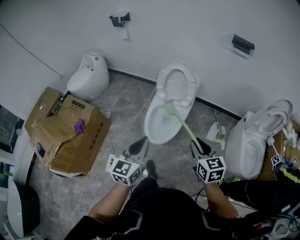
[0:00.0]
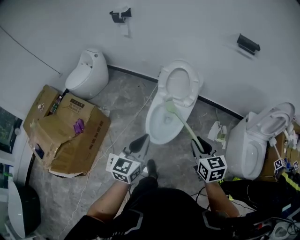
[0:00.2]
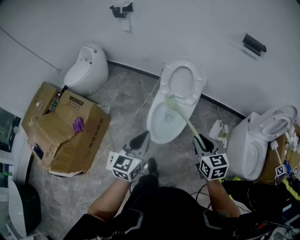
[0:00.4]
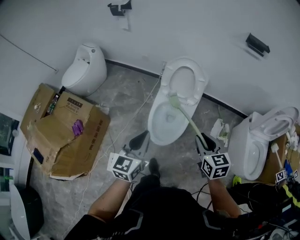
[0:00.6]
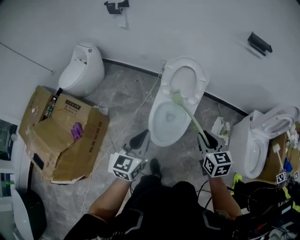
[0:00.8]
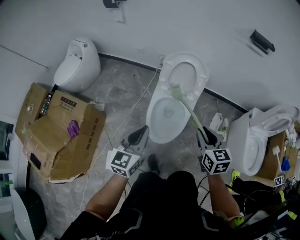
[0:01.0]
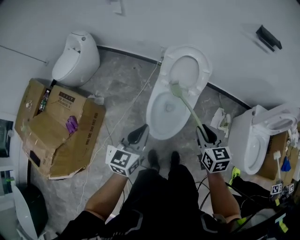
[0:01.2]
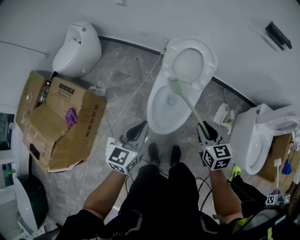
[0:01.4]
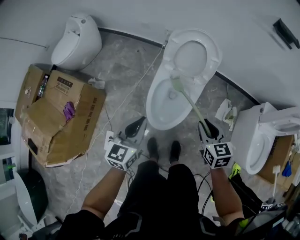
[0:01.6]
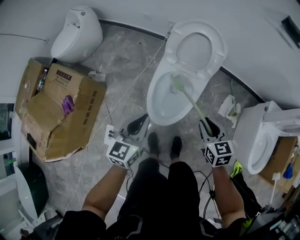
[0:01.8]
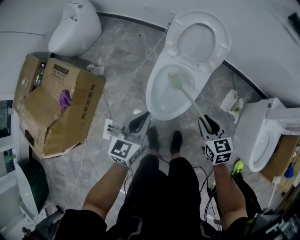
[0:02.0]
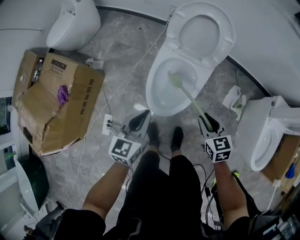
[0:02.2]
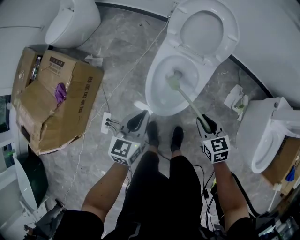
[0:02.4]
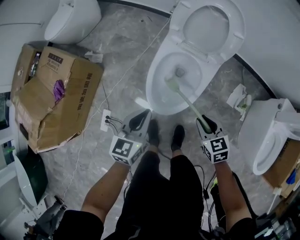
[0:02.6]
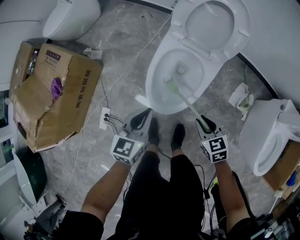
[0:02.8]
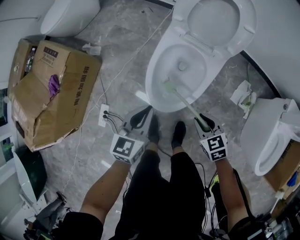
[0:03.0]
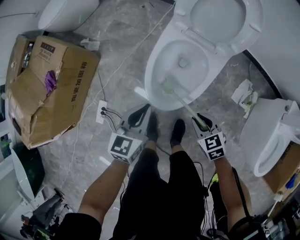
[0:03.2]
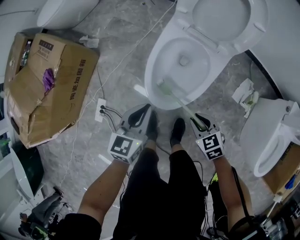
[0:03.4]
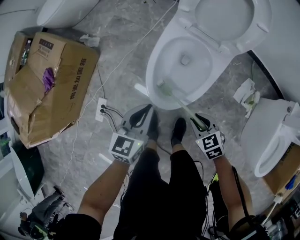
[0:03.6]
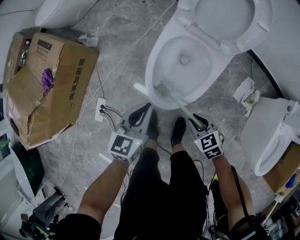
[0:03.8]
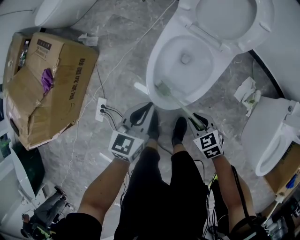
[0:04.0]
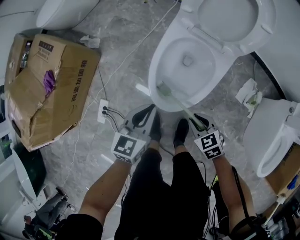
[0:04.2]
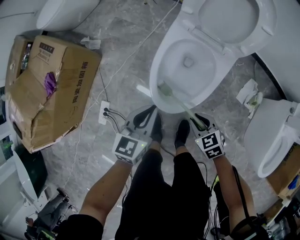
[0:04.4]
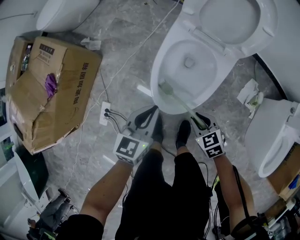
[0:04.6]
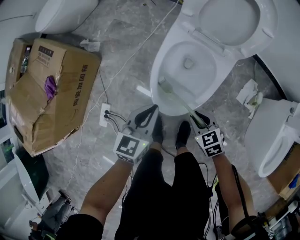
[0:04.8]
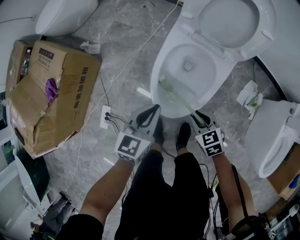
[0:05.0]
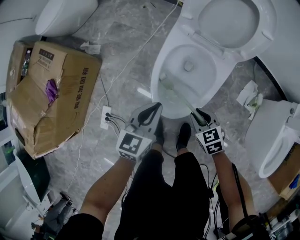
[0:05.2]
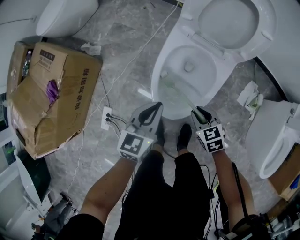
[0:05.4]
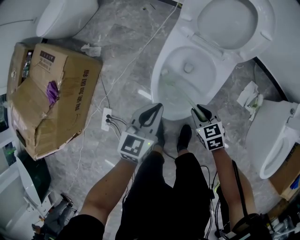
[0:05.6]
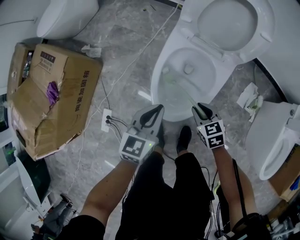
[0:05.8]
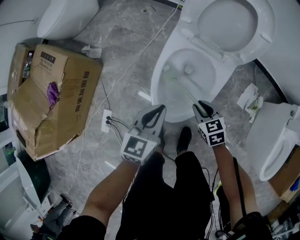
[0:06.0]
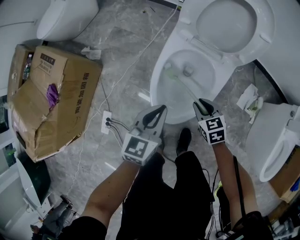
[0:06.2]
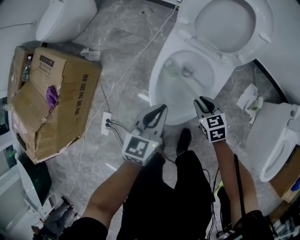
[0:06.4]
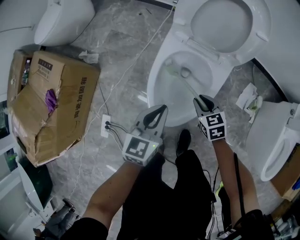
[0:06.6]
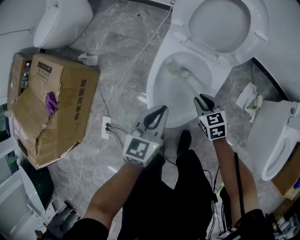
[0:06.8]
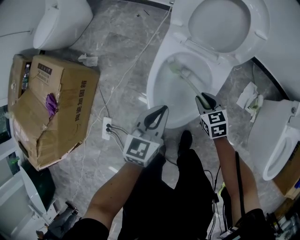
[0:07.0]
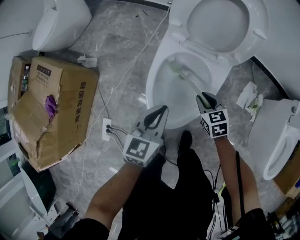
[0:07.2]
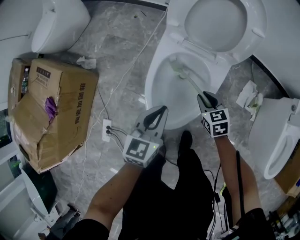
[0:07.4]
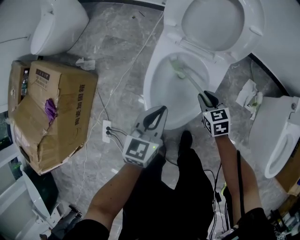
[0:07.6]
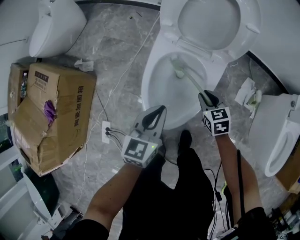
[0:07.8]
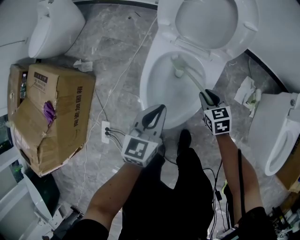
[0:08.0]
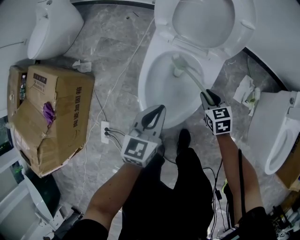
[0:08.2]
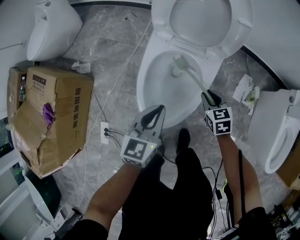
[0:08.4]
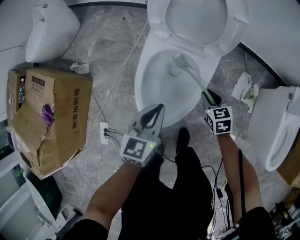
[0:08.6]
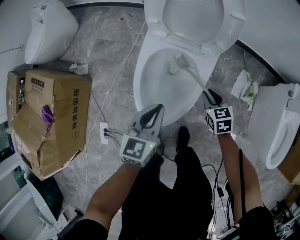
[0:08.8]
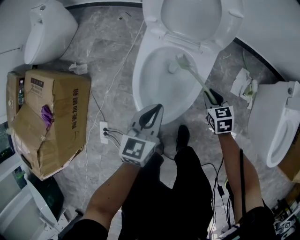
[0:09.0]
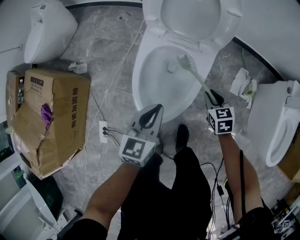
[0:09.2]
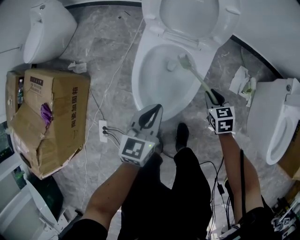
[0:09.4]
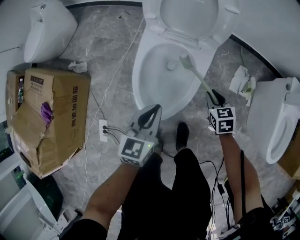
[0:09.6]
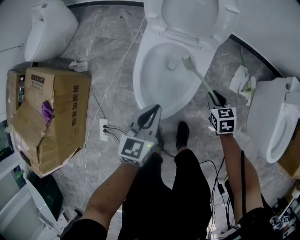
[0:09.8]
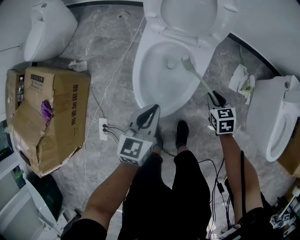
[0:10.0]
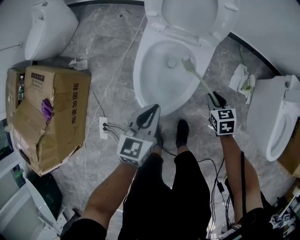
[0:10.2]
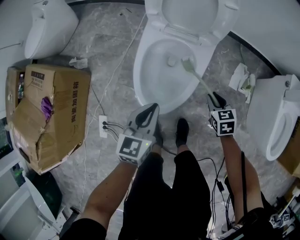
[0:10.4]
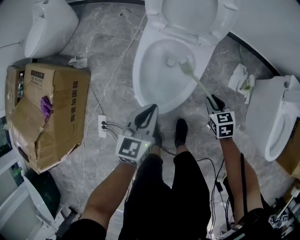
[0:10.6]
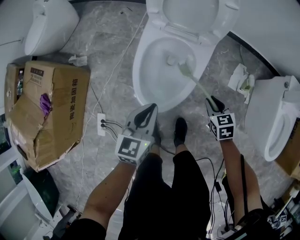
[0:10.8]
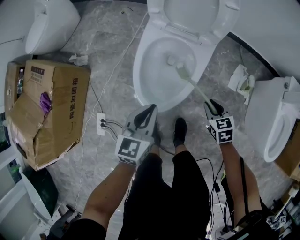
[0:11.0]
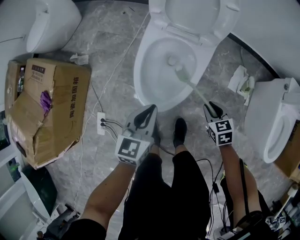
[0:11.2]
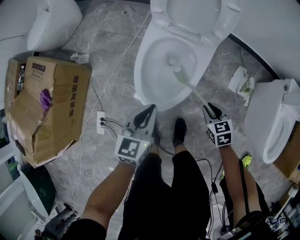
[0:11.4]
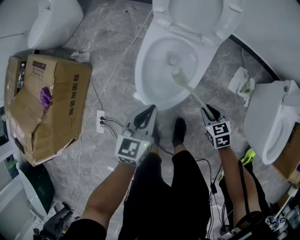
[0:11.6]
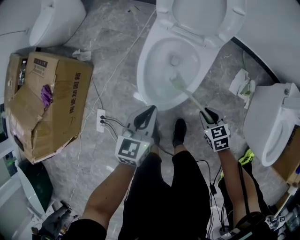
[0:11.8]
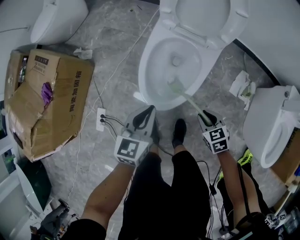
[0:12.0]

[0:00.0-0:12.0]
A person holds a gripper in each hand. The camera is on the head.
0:00.0 to 0:01.6: The two grippers go approximately 20 cm forward and downward.
0:01.6 to 0:03.0: Both grippers move downward, approximately 20 cm. The right gripper changes its angle by roughly 30 degrees.
0:03.0 to 0:04.4: The right gripper is displaced downward by some 5 cm.
0:04.4 to 0:06.0: The right gripper moves forward, some 10 cm, while the left gripper moves some 5 cm.
0:06.0 to 0:07.6: The right gripper travels forward and to the right by about 10 cm.
0:07.6 to 0:09.0: The right gripper shifts approximately 10 cm to the right.
0:09.0 to 0:10.4: The grippers both shift backward by about 5 cm.
0:10.4 to 0:12.0: The right gripper shifts roughly 10 cm backward and to the left.

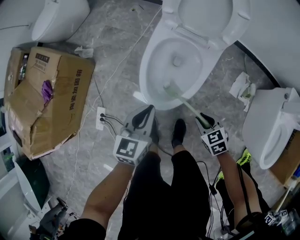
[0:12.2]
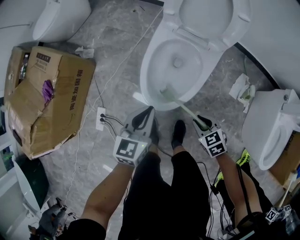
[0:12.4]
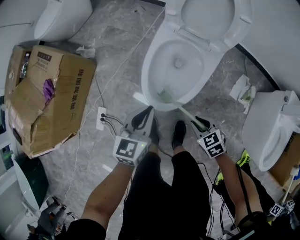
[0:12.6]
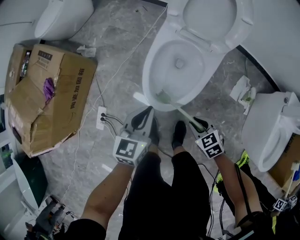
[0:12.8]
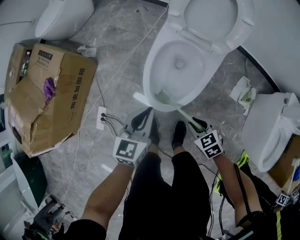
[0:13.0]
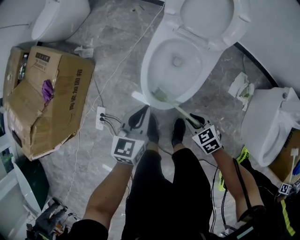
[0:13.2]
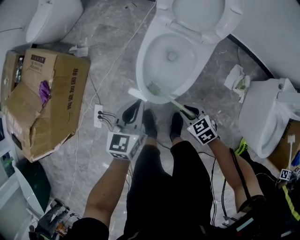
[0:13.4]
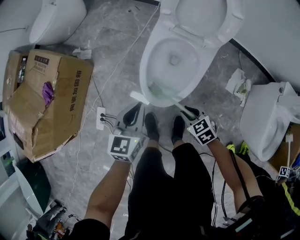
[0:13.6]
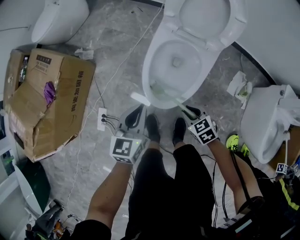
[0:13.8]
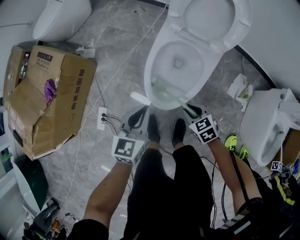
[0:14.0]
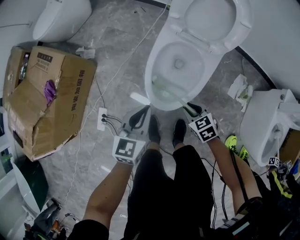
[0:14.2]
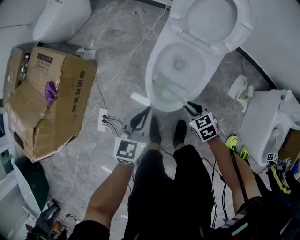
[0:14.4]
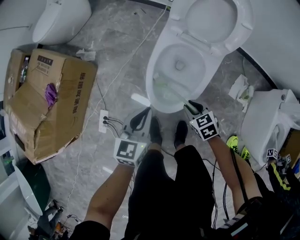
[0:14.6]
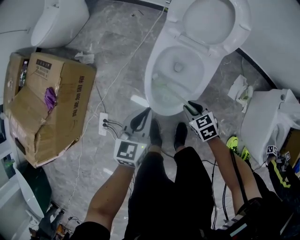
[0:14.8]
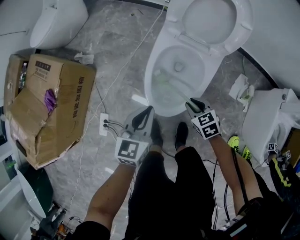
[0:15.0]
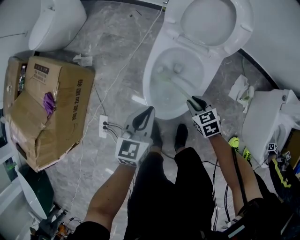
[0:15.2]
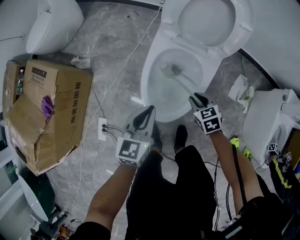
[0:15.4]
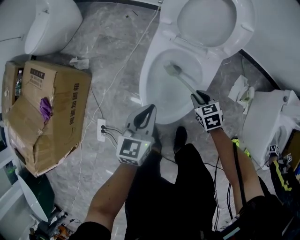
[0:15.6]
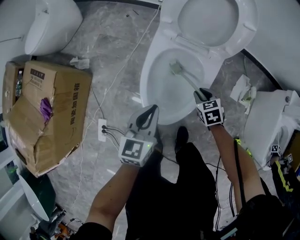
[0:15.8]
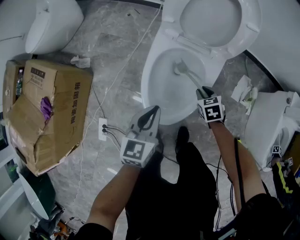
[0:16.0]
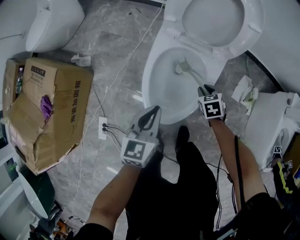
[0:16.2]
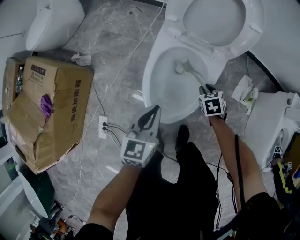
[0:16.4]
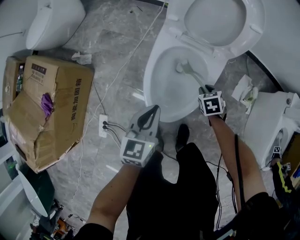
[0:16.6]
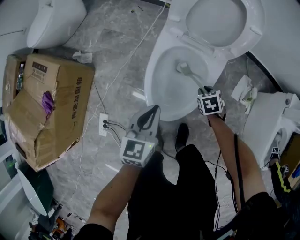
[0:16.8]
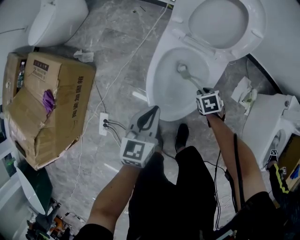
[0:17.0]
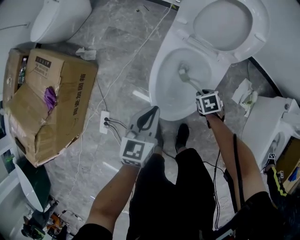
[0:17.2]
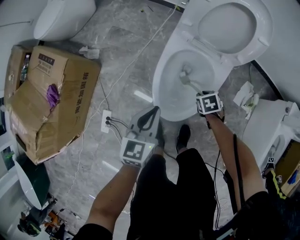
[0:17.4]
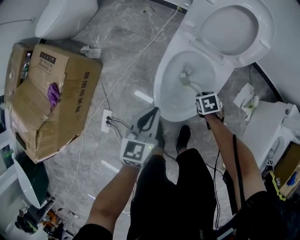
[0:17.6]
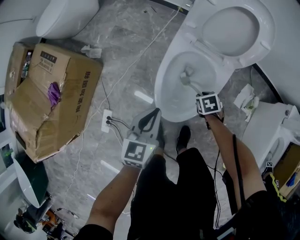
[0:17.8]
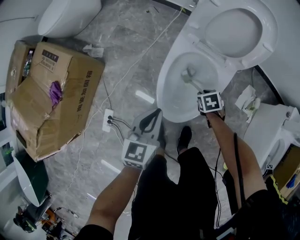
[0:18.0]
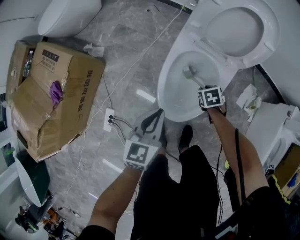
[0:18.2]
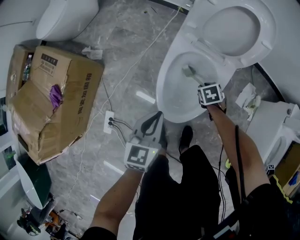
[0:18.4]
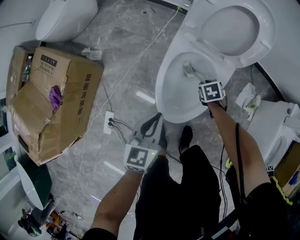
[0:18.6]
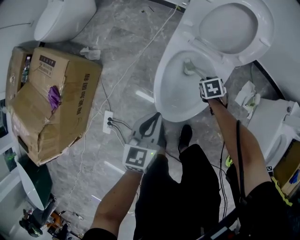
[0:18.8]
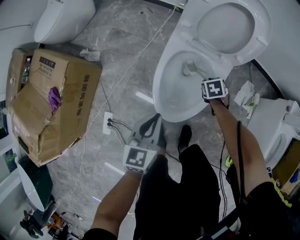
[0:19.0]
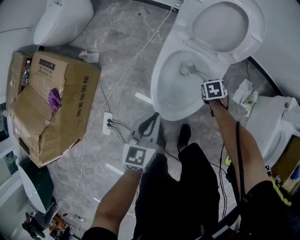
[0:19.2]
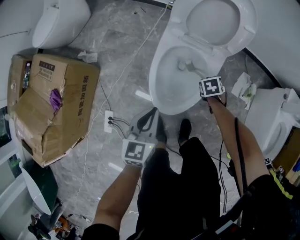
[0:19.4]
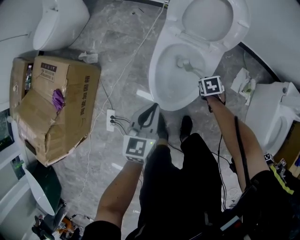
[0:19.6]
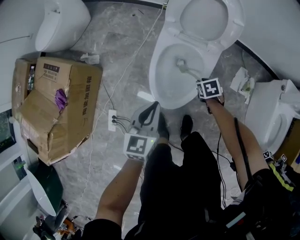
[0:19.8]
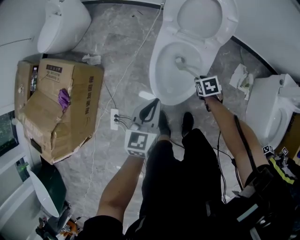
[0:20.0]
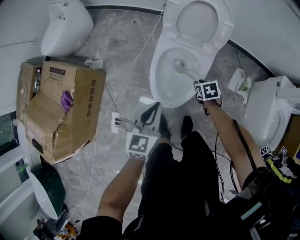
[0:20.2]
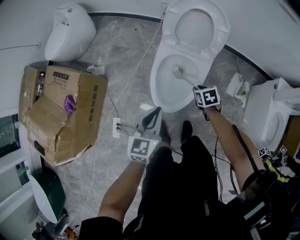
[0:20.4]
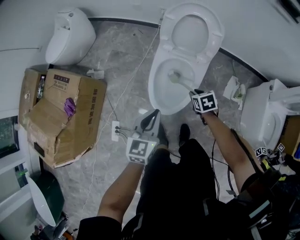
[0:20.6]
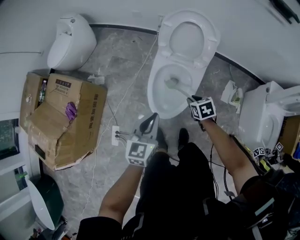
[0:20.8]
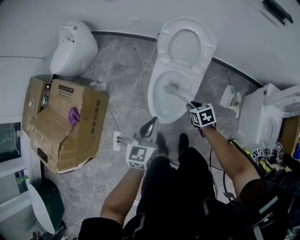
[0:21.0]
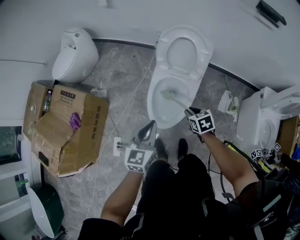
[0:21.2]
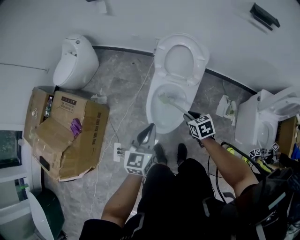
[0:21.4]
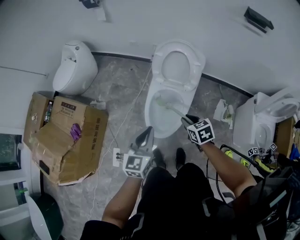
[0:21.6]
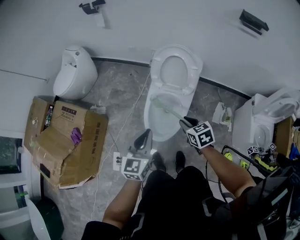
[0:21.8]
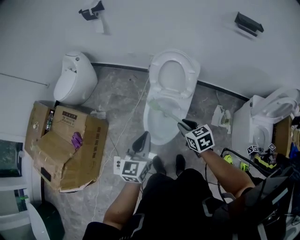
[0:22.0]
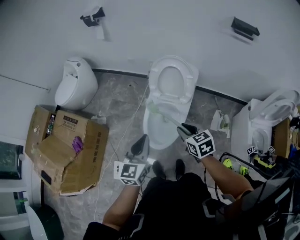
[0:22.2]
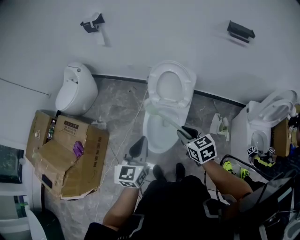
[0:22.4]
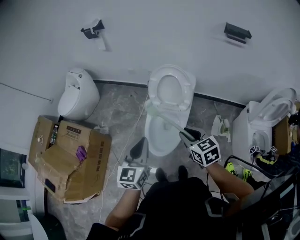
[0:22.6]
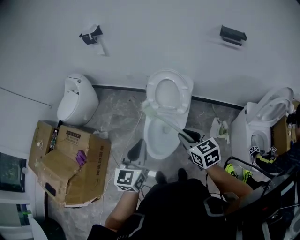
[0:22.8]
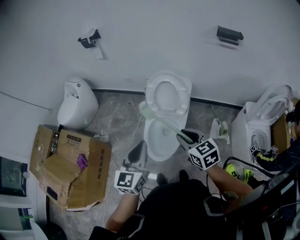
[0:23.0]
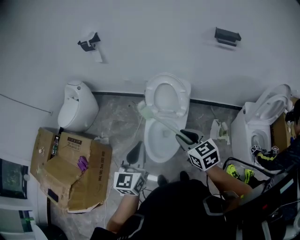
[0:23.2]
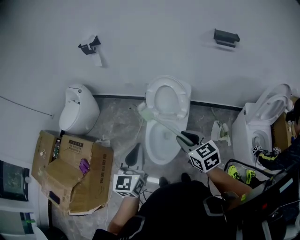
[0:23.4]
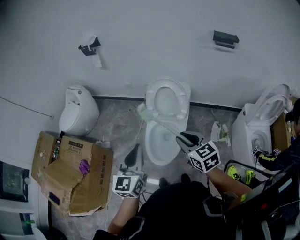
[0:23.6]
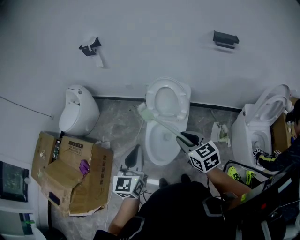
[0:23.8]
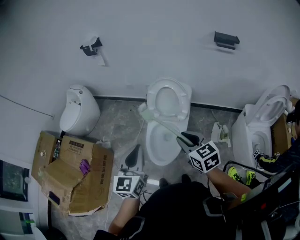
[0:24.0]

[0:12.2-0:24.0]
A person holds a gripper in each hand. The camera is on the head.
0:12.2 to 0:13.6: The left gripper moves about 5 cm, while the right gripper goes roughly 5 cm to the left.
0:13.6 to 0:15.2: The right gripper is displaced forward by approximately 10 cm; the left gripper changes place by about 5 cm.
0:15.2 to 0:16.6: The right gripper shifts roughly 10 cm forward, downward and to the right, and turns by approximately 20 degrees.
0:16.6 to 0:18.2: The left gripper changes place by approximately 5 cm; the right gripper changes place by some 5 cm.
0:18.2 to 0:19.6: The left gripper ends up some 5 cm from where it was, while the right gripper changes place by some 5 cm.
0:19.6 to 0:21.0: Both grippers travel together upward, roughly 15 cm. The right gripper swivels about 20 degrees.
0:21.0 to 0:22.6: The left gripper is displaced upward by about 15 cm. Meanwhile the right gripper heads upward, covering approximately 25 cm, and rotates roughly 30 degrees.
0:22.6 to 0:24.0: The two grippers go some 5 cm upward.
